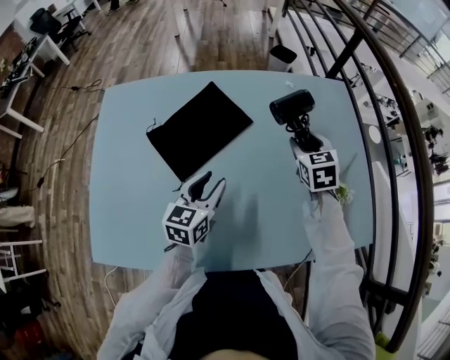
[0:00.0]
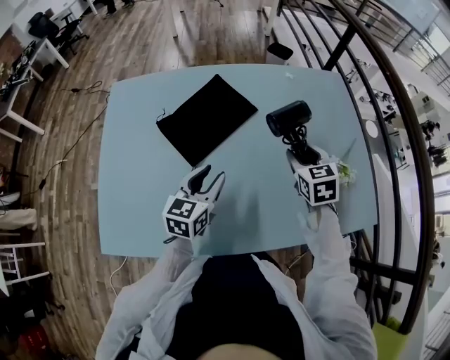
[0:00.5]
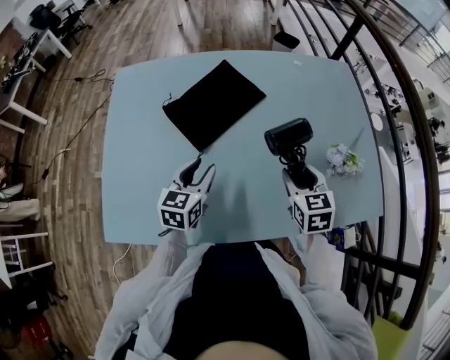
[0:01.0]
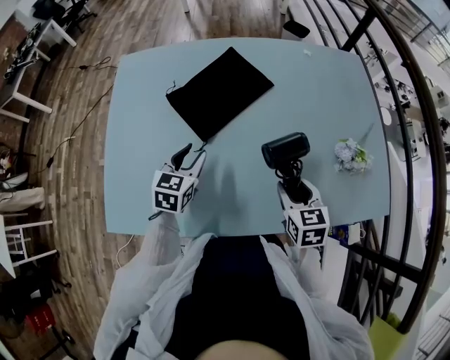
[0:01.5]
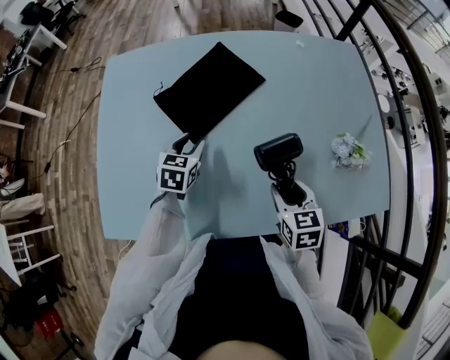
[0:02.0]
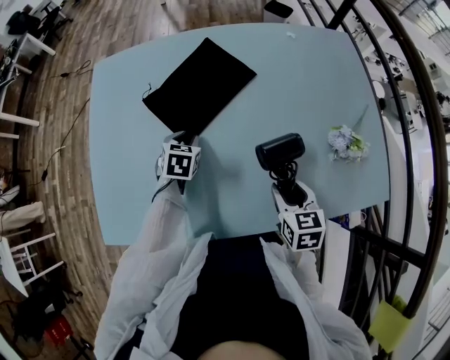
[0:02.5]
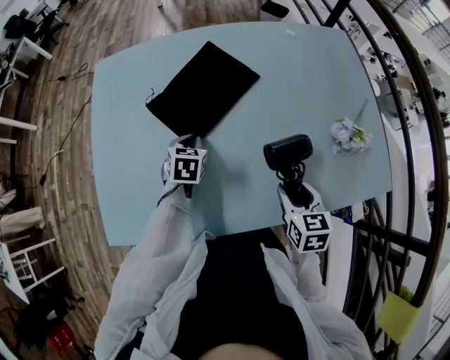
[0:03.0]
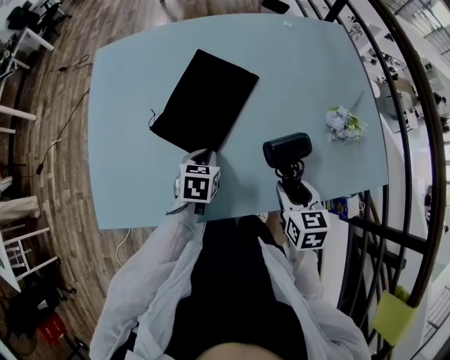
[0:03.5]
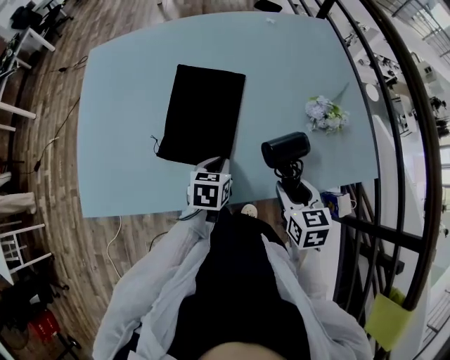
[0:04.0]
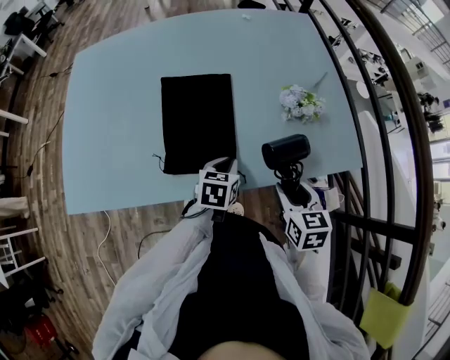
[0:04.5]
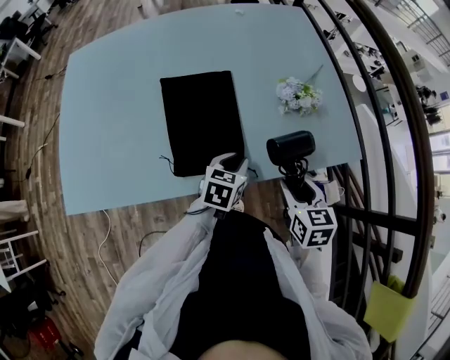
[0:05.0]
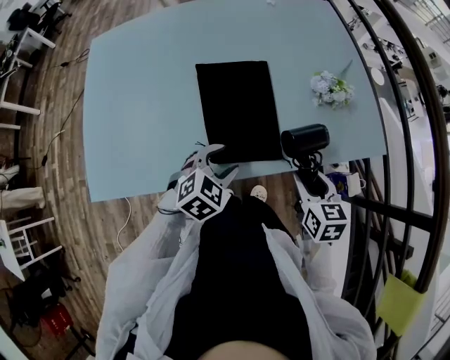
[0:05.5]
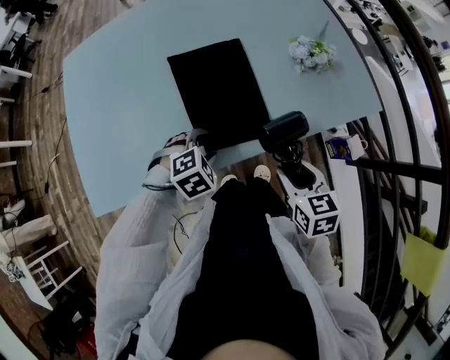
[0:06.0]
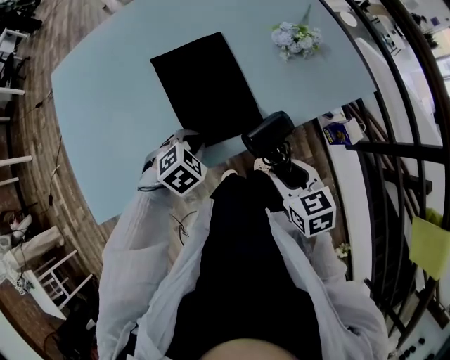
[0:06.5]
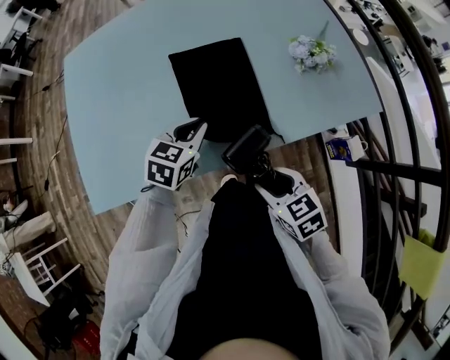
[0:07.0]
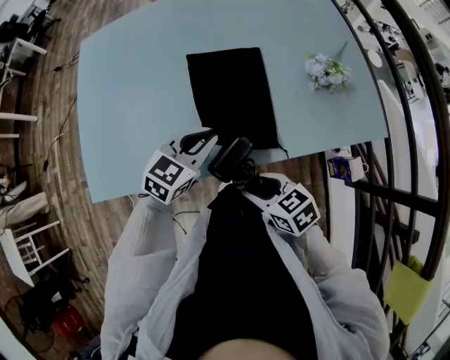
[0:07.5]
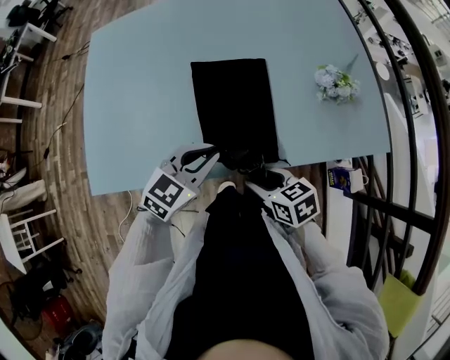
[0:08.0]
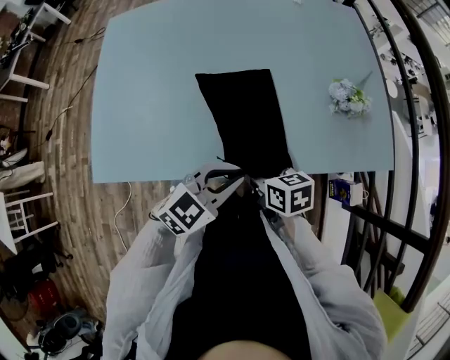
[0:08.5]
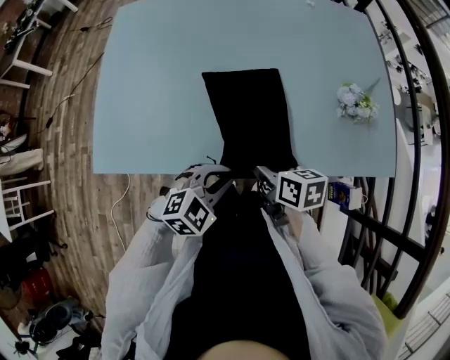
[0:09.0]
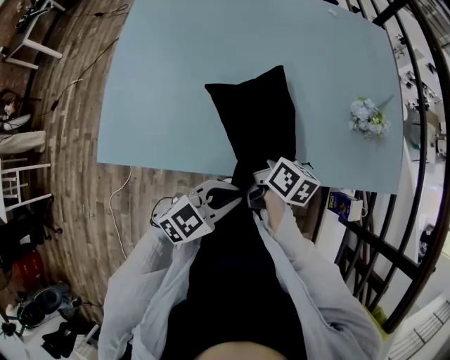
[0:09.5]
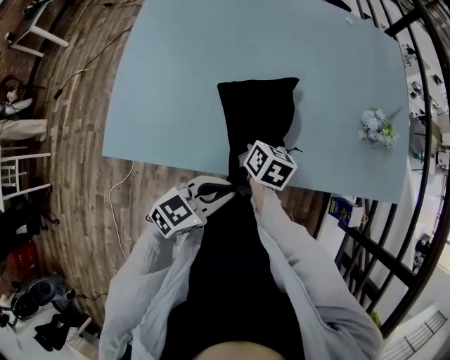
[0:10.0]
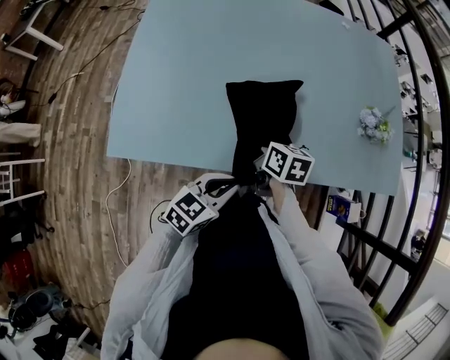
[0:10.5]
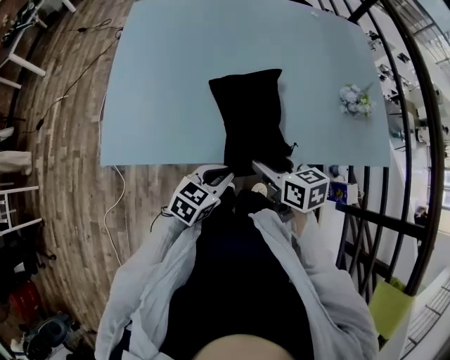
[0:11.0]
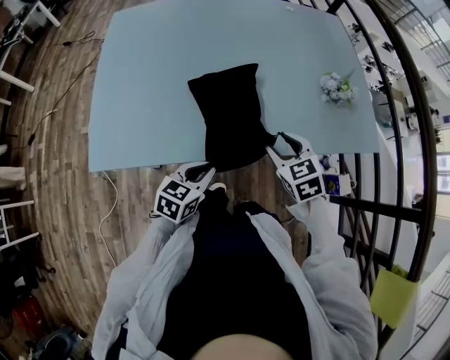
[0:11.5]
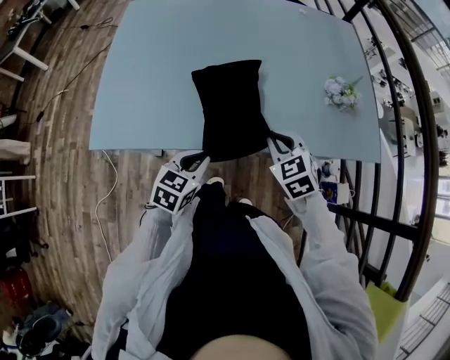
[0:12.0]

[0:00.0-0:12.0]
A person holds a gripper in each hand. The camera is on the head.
0:00.0 to 0:02.0: The right gripper is displaced backward by some 25 cm. The left gripper travels to the left and downward by about 15 cm, and changes its angle by roughly 20 degrees.
0:02.0 to 0:04.0: The right gripper travels backward and to the right by some 15 cm. The left gripper moves to the right and backward, roughly 25 cm, and closes its fingers.
0:04.0 to 0:06.0: The grippers both shift backward by some 10 cm. The right gripper goes to the right and returns, some 10 cm each way; the left gripper moves some 15 cm to the right and comes back, rolls clockwise, seen from behind, by some 70 degrees, and opens up.
0:06.0 to 0:08.0: The right gripper heads to the left, covering some 10 cm, and changes its angle by about 30 degrees, while the left gripper travels upward by about 10 cm, points its fingers roughly 40 degrees further upward, and closes.
0:08.0 to 0:10.0: The left gripper travels backward by roughly 10 cm, while the right gripper heads forward and to the left, covering roughly 20 cm, and changes its angle by about 30 degrees.
0:10.0 to 0:12.0: The right gripper travels to the right, backward and upward by approximately 15 cm, rolls counterclockwise, seen from behind, by some 60 degrees, and closes. Meanwhile the left gripper rotates roughly 20 degrees.

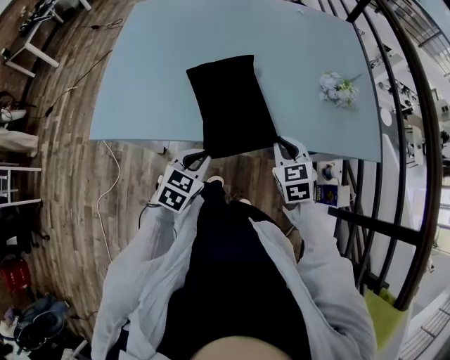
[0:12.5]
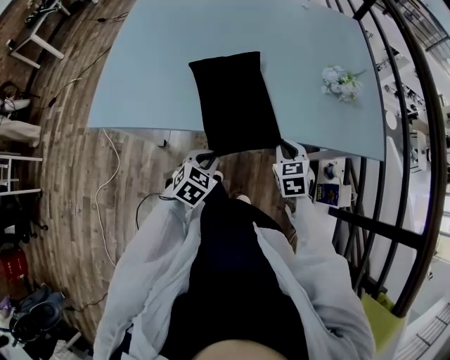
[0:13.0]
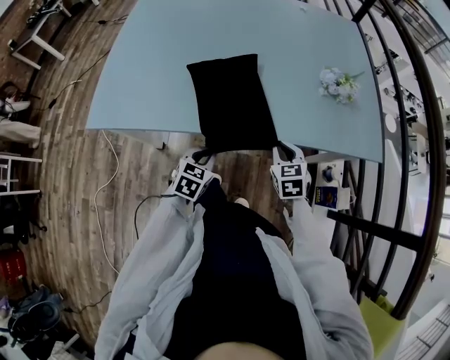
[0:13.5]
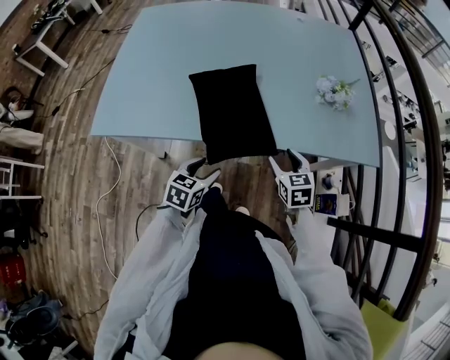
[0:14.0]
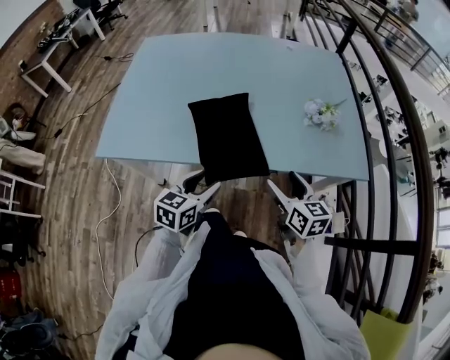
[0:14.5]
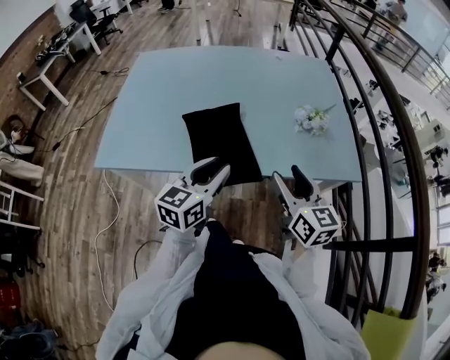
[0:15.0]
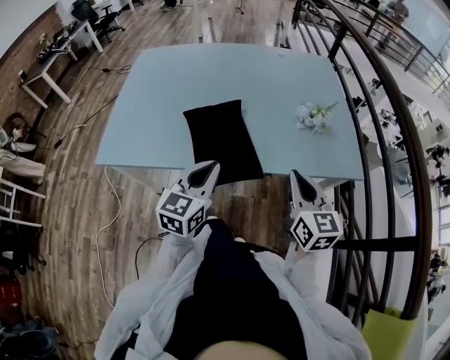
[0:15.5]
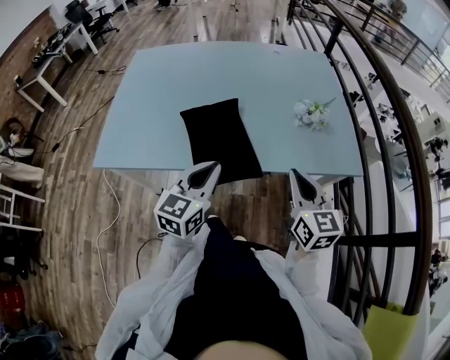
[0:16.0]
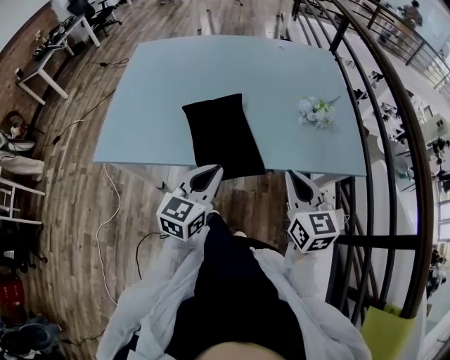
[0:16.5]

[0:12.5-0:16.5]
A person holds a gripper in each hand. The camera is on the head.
0:12.5 to 0:14.5: The right gripper goes approximately 10 cm backward and to the right, rotates approximately 30 degrees, and opens up; the left gripper moves approximately 10 cm downward and comes back, rotates about 20 degrees, and opens its fingers.
0:14.5 to 0:16.5: Both grippers travel together upward, some 10 cm. The left gripper closes, while the right gripper closes.

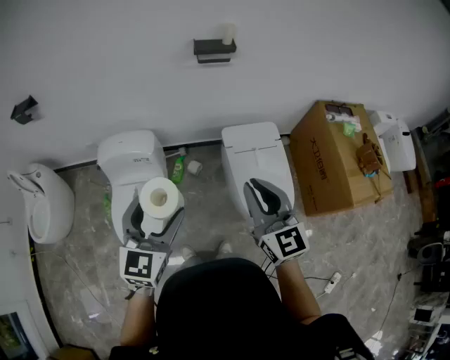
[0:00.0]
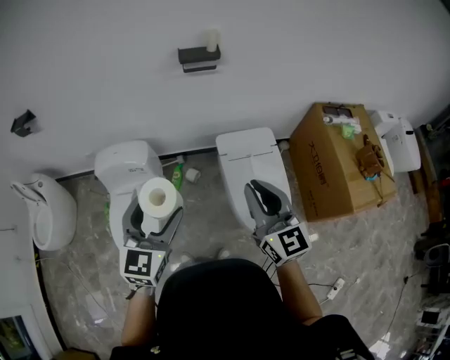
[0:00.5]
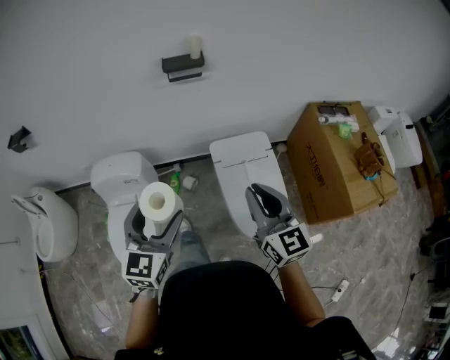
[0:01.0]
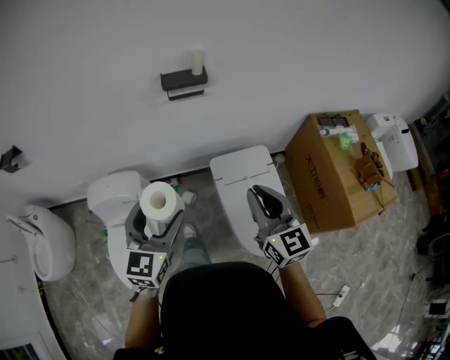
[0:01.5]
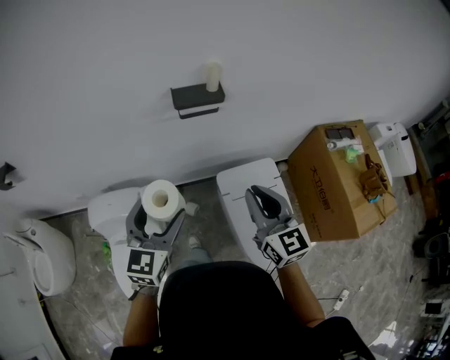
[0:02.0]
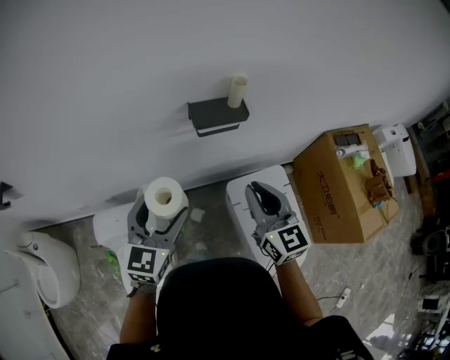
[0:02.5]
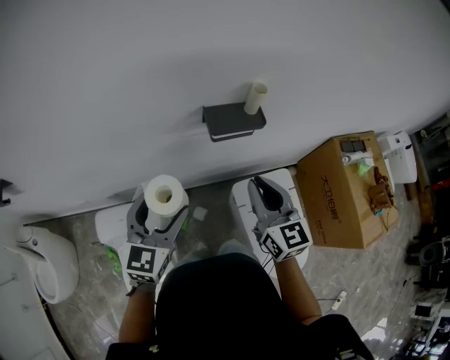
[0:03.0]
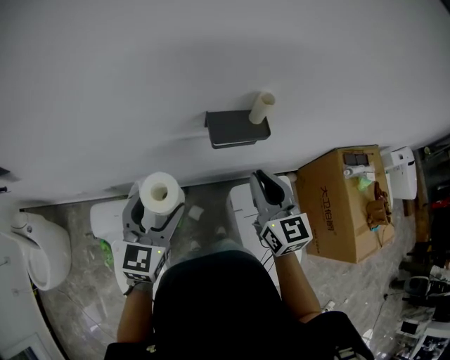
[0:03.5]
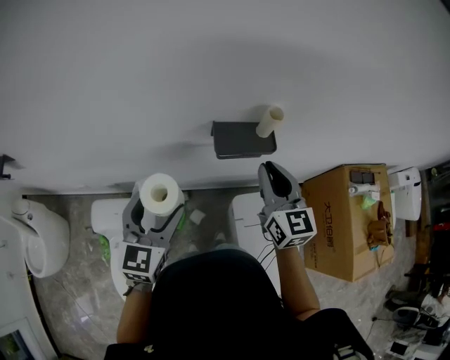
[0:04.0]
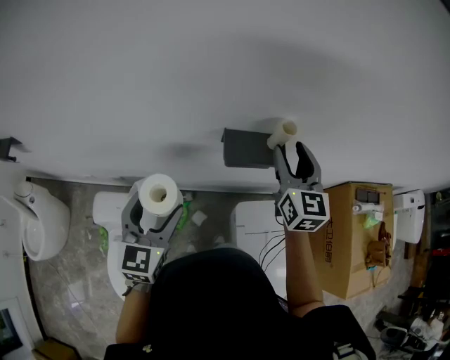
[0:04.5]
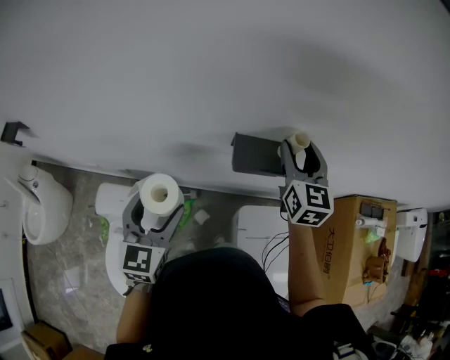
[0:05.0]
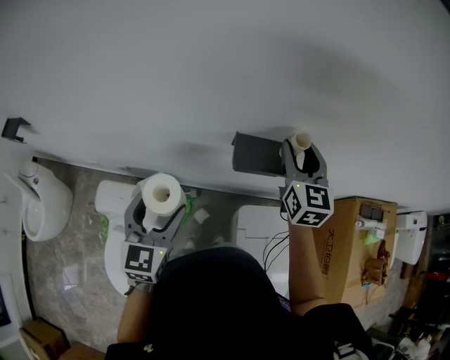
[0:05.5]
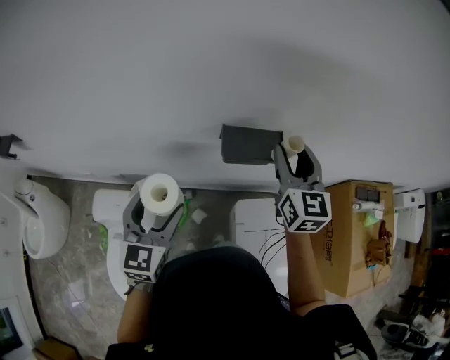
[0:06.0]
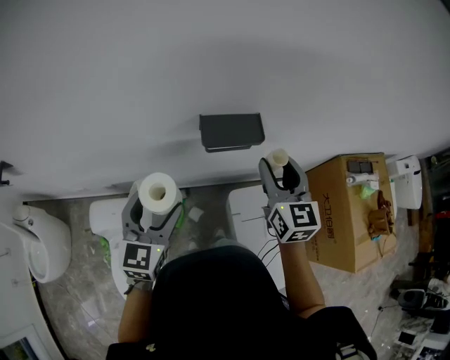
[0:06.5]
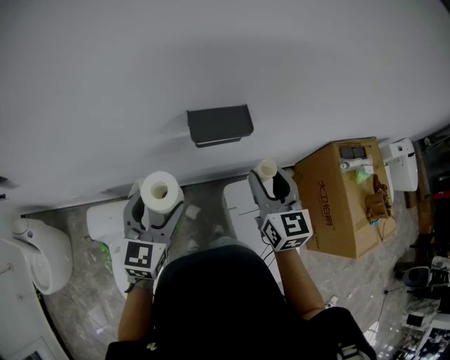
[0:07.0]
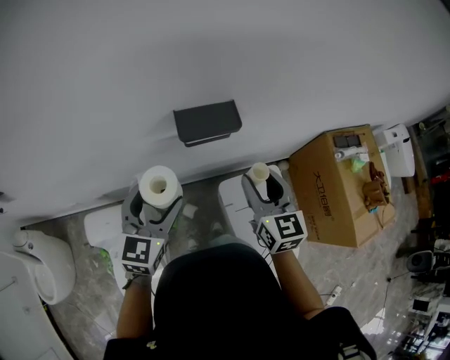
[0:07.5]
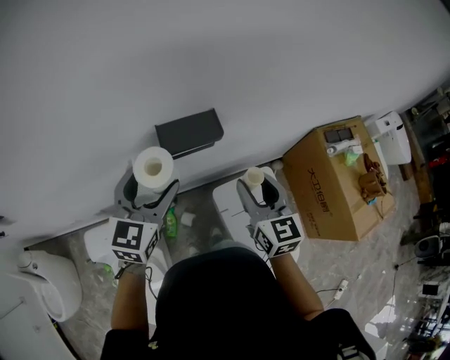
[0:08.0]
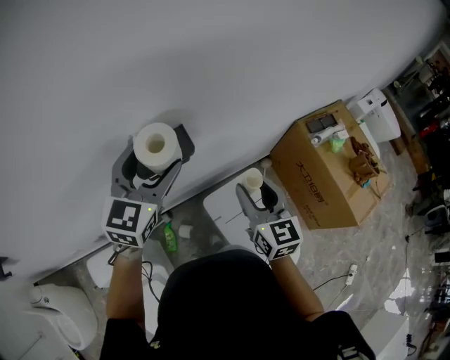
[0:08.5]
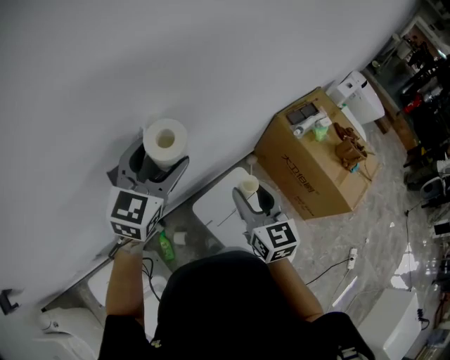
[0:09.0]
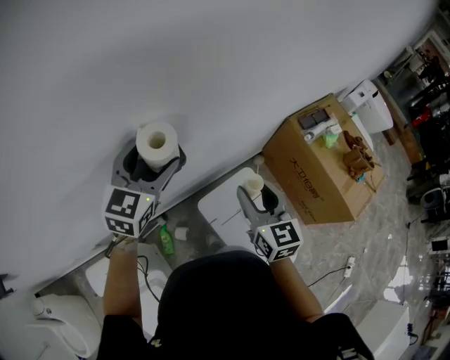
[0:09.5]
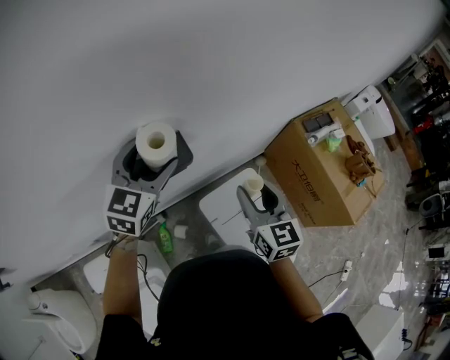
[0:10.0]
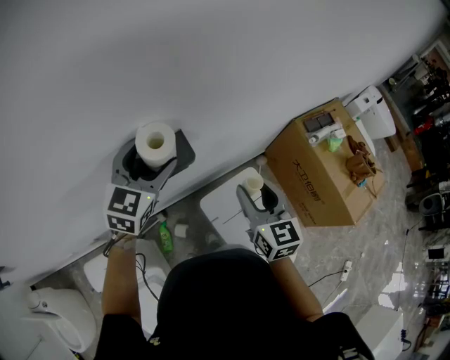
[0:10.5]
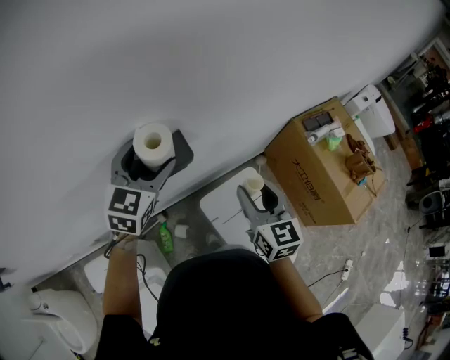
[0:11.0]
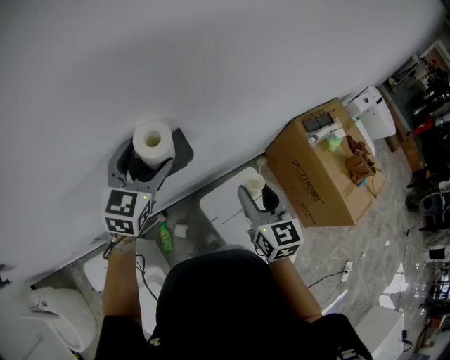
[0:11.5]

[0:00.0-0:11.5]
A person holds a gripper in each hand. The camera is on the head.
0:00.0 to 0:02.0: The grippers both shift forward by about 30 cm.
0:02.0 to 0:04.0: The right gripper is displaced forward by about 25 cm; the left gripper is displaced forward and to the left by about 20 cm.
0:04.0 to 0:06.0: The right gripper shifts approximately 5 cm forward, and opens its fingers.
0:06.0 to 0:07.5: The left gripper moves to the right, about 5 cm. The right gripper goes roughly 15 cm backward and downward.
0:07.5 to 0:09.5: The left gripper heads forward and to the right, covering about 25 cm, and turns by some 20 degrees; the right gripper is displaced to the right by some 10 cm.
0:09.5 to 0:11.5: There are only small adjustments of the grippers.
